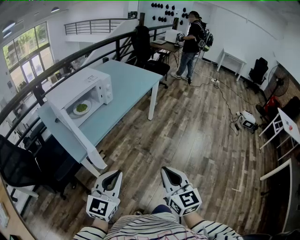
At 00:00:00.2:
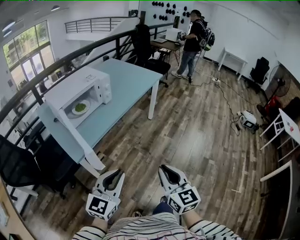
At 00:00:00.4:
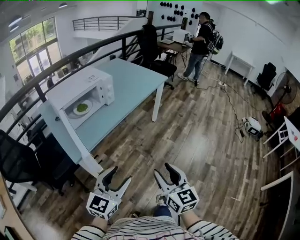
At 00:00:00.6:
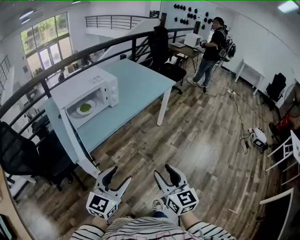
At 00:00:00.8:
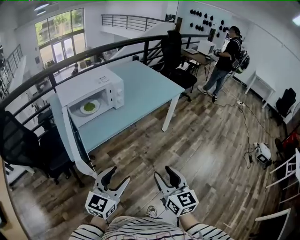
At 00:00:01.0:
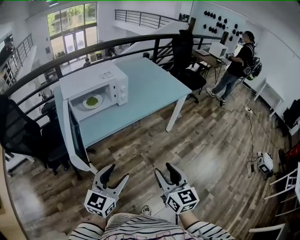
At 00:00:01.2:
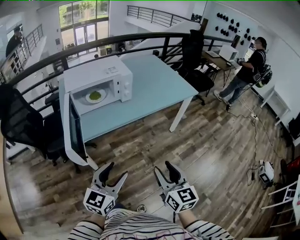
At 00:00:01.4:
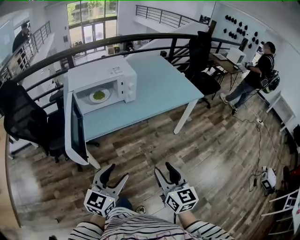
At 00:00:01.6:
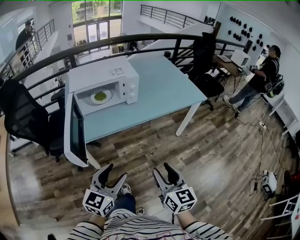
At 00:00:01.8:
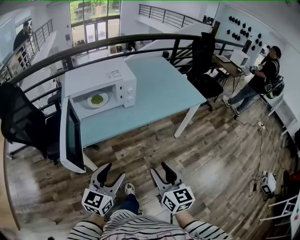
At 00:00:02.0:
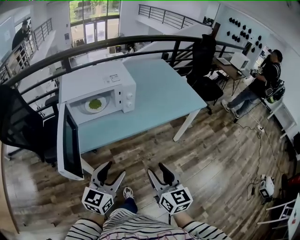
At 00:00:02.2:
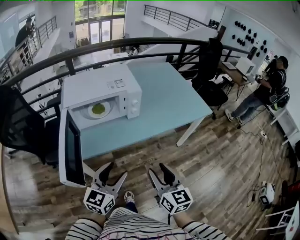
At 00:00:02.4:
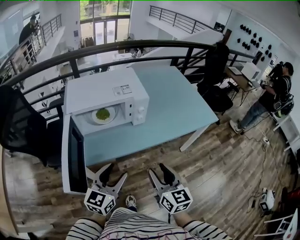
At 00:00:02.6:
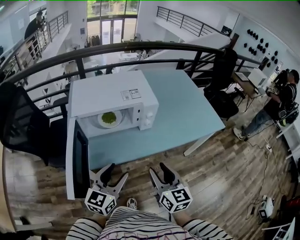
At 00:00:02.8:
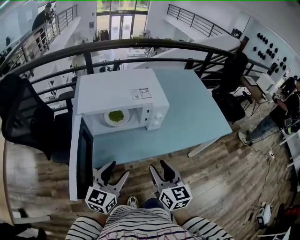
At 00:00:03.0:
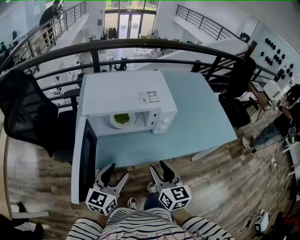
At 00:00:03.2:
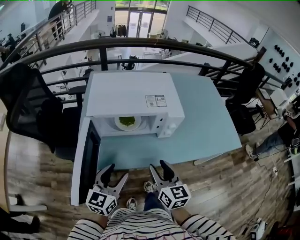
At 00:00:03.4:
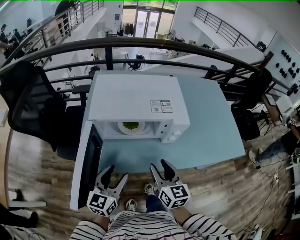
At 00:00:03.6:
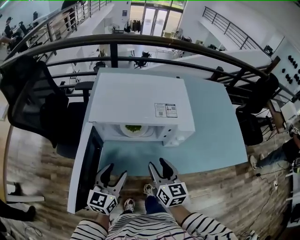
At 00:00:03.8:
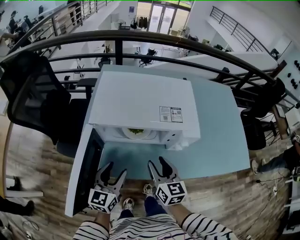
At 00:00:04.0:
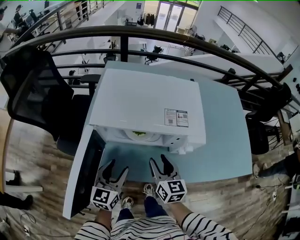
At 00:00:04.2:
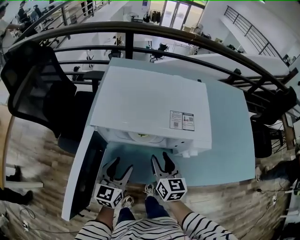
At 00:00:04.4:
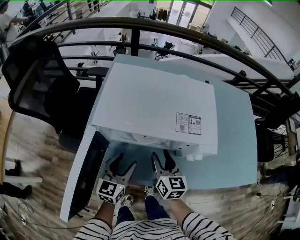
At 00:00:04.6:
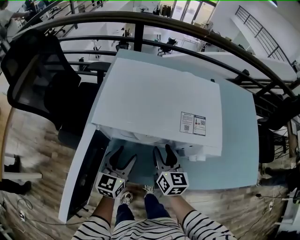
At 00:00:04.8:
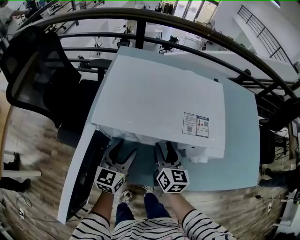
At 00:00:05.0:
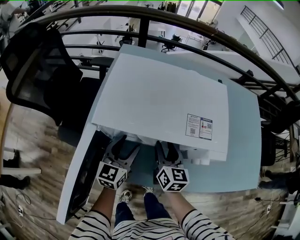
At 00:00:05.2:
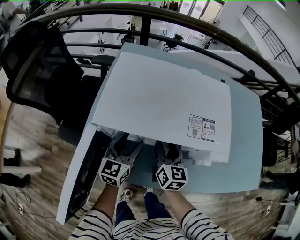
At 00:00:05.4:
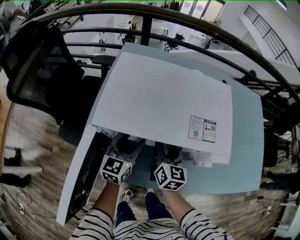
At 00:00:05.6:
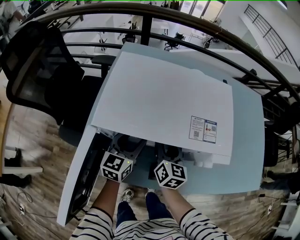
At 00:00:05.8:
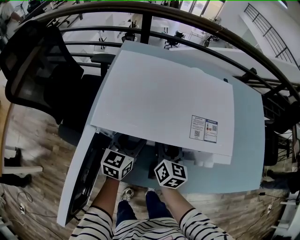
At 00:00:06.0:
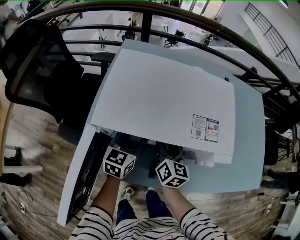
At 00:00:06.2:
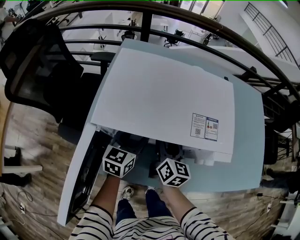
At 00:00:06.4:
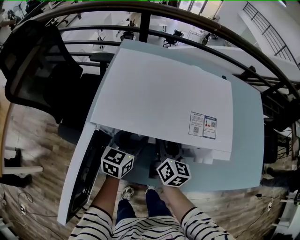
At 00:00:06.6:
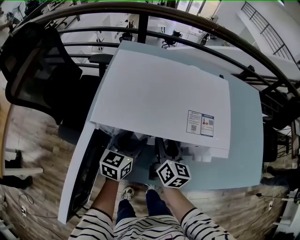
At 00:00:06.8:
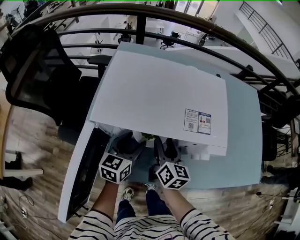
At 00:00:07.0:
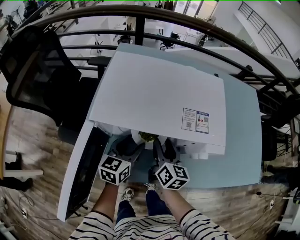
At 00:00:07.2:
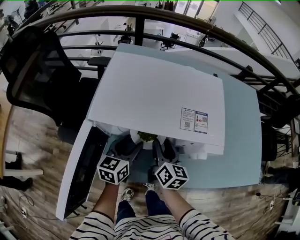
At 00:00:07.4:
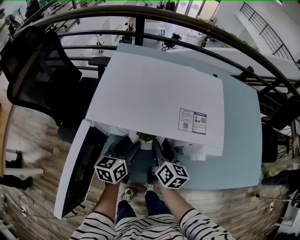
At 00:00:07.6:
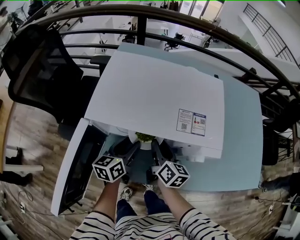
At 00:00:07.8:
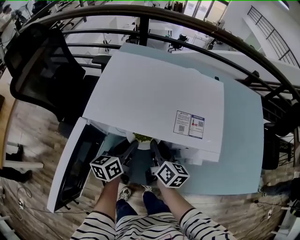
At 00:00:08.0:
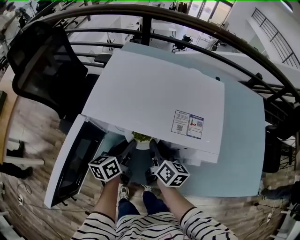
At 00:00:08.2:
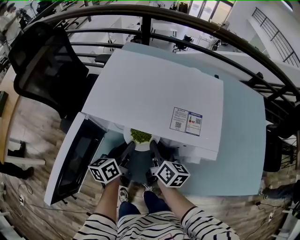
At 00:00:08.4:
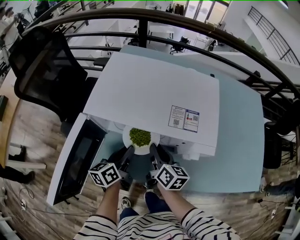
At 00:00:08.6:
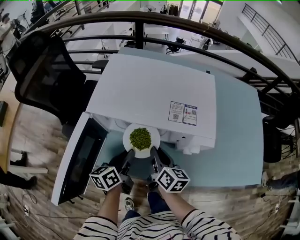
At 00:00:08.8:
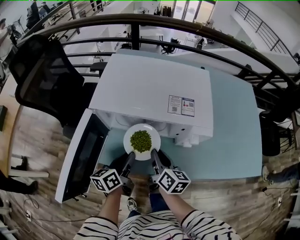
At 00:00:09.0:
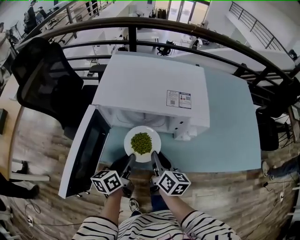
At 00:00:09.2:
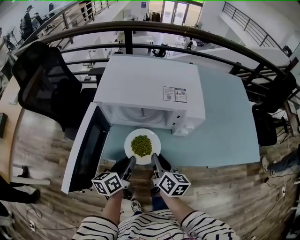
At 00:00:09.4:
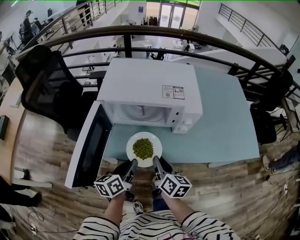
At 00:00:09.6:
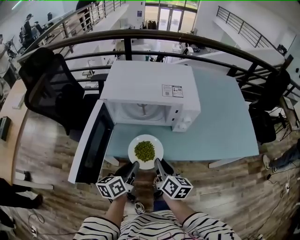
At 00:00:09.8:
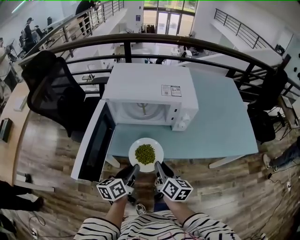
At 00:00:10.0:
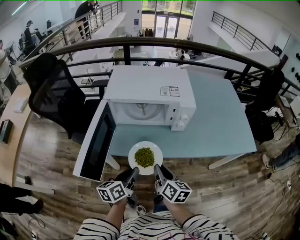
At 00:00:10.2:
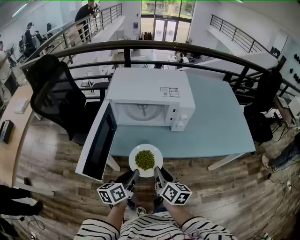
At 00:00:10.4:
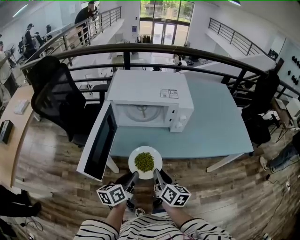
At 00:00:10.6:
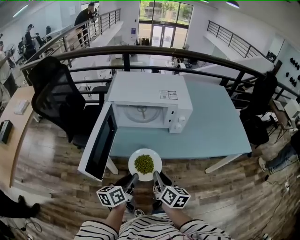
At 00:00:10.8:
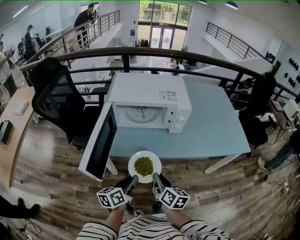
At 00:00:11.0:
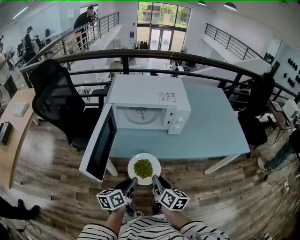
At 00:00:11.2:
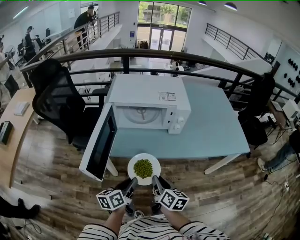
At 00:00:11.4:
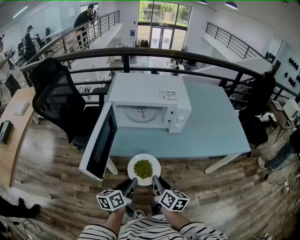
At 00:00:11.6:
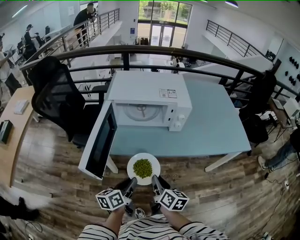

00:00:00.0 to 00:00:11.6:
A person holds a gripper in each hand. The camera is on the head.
00:00:00.0 to 00:00:01.4: The right gripper shifts by approximately 25 cm, changes its angle by some 30 degrees, and opens up. The left gripper ends up approximately 20 cm from where it was, rotates roughly 30 degrees, and opens.
00:00:01.4 to 00:00:02.8: The right gripper goes roughly 30 cm forward and to the left. Meanwhile the left gripper moves forward, about 25 cm.
00:00:02.8 to 00:00:04.4: The two grippers go about 25 cm forward and downward. The left gripper swivels some 20 degrees.
00:00:04.4 to 00:00:05.8: Both grippers move forward, approximately 10 cm.
00:00:05.8 to 00:00:07.2: The grippers move only a little.
00:00:07.2 to 00:00:08.8: The two grippers go some 10 cm backward. The left gripper turns by about 30 degrees, and closes its fingers. Meanwhile the right gripper closes.
00:00:08.8 to 00:00:10.2: The grippers both shift backward by some 20 cm.
00:00:10.2 to 00:00:11.6: The right gripper shifts about 5 cm backward. The left gripper changes place by roughly 5 cm.

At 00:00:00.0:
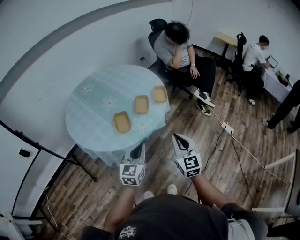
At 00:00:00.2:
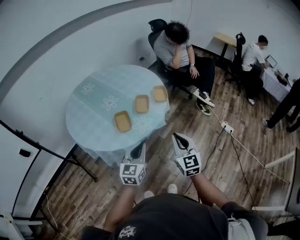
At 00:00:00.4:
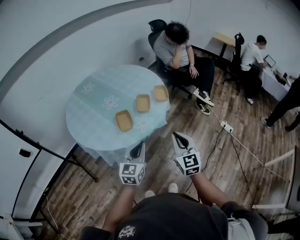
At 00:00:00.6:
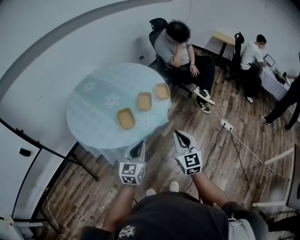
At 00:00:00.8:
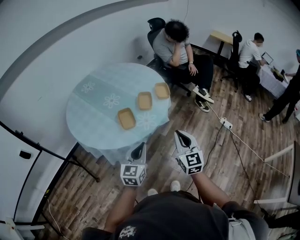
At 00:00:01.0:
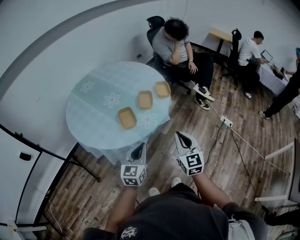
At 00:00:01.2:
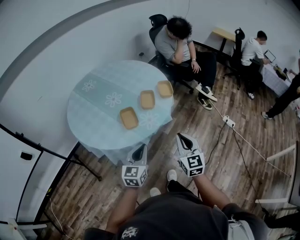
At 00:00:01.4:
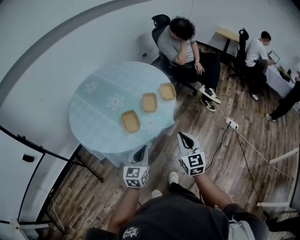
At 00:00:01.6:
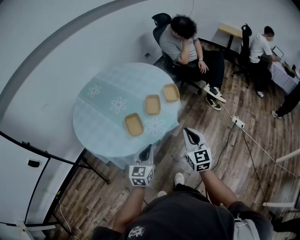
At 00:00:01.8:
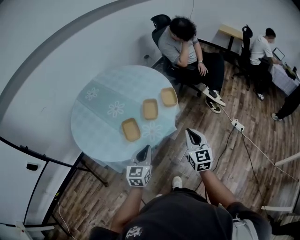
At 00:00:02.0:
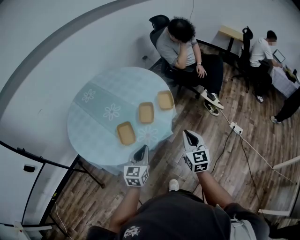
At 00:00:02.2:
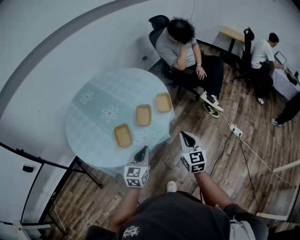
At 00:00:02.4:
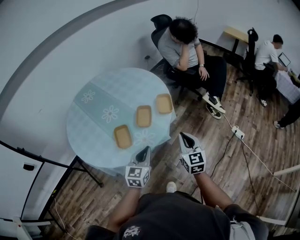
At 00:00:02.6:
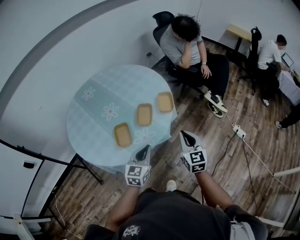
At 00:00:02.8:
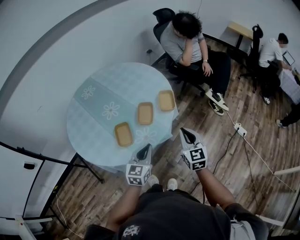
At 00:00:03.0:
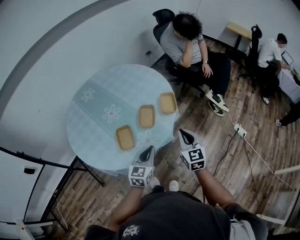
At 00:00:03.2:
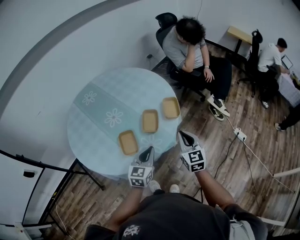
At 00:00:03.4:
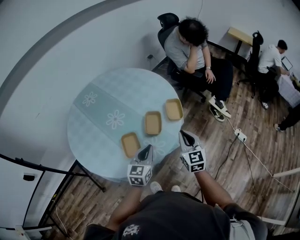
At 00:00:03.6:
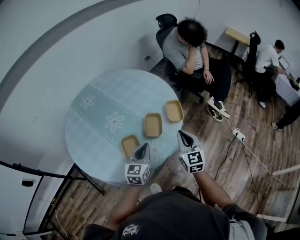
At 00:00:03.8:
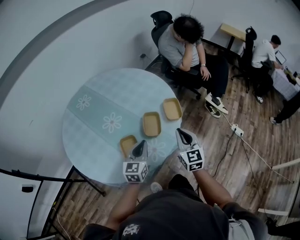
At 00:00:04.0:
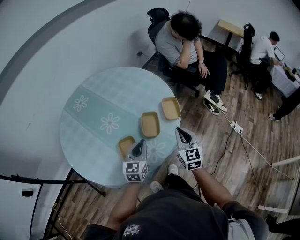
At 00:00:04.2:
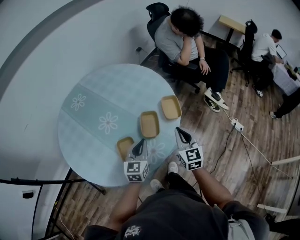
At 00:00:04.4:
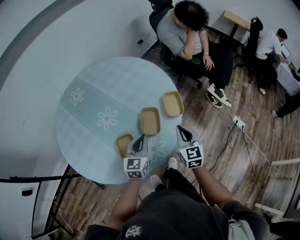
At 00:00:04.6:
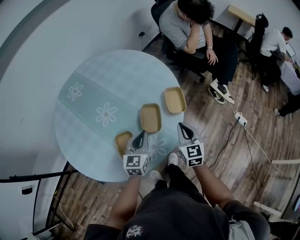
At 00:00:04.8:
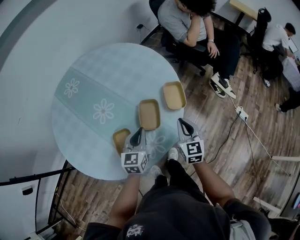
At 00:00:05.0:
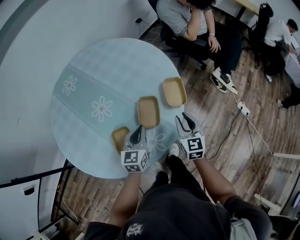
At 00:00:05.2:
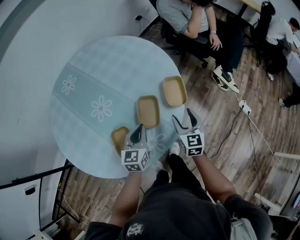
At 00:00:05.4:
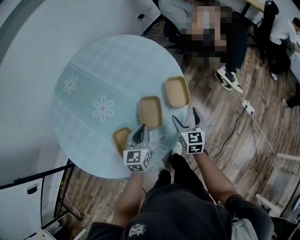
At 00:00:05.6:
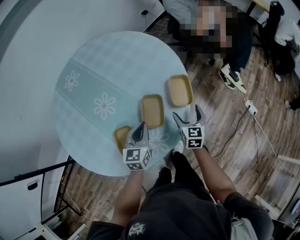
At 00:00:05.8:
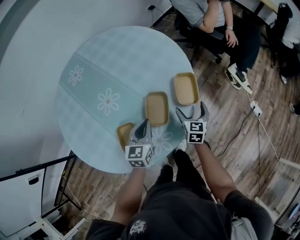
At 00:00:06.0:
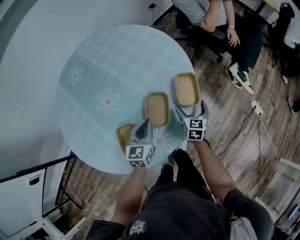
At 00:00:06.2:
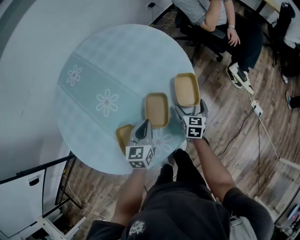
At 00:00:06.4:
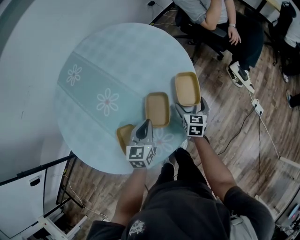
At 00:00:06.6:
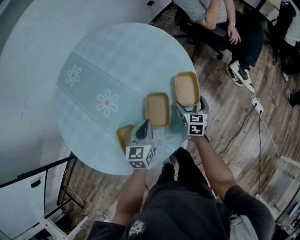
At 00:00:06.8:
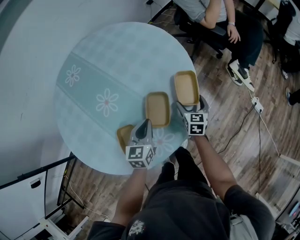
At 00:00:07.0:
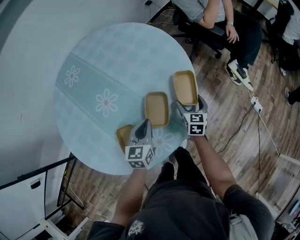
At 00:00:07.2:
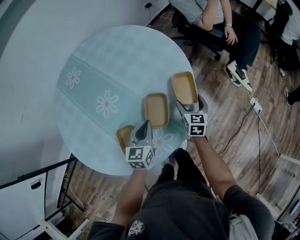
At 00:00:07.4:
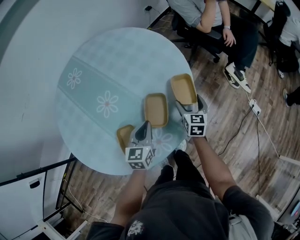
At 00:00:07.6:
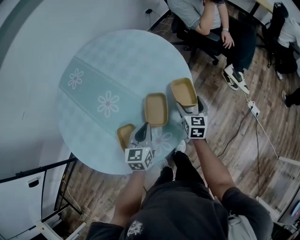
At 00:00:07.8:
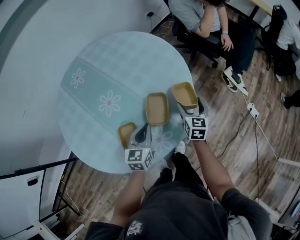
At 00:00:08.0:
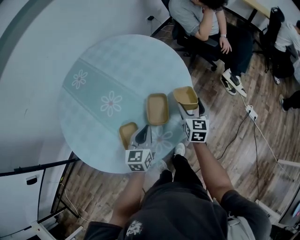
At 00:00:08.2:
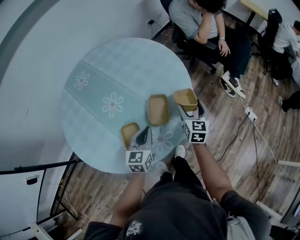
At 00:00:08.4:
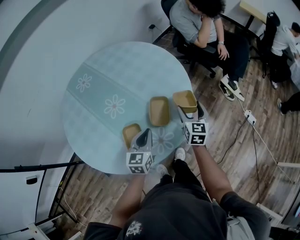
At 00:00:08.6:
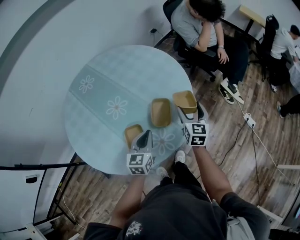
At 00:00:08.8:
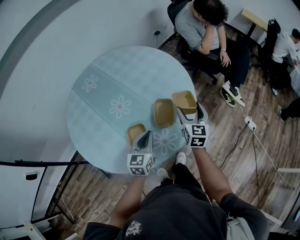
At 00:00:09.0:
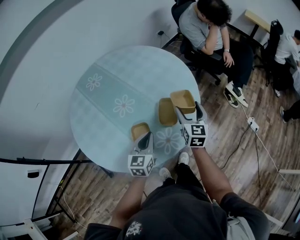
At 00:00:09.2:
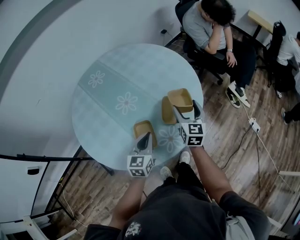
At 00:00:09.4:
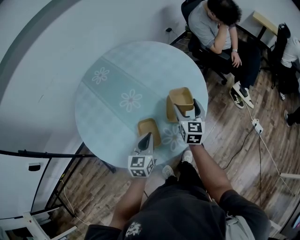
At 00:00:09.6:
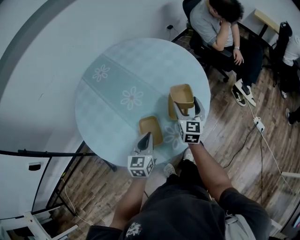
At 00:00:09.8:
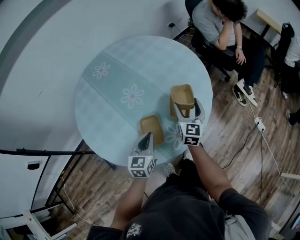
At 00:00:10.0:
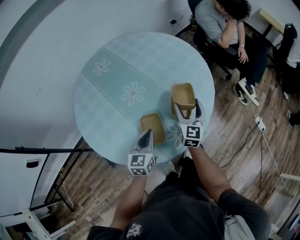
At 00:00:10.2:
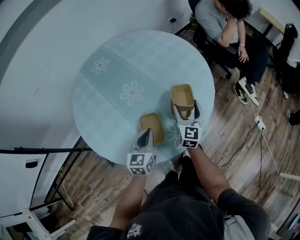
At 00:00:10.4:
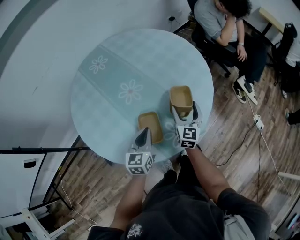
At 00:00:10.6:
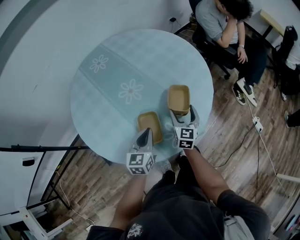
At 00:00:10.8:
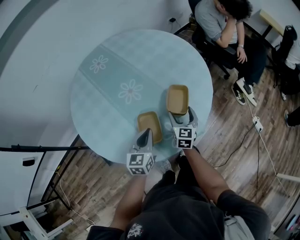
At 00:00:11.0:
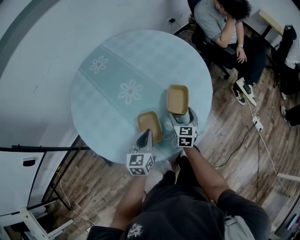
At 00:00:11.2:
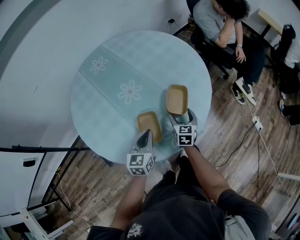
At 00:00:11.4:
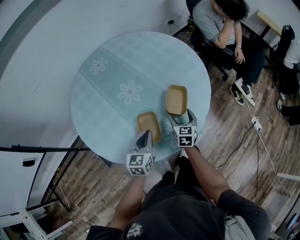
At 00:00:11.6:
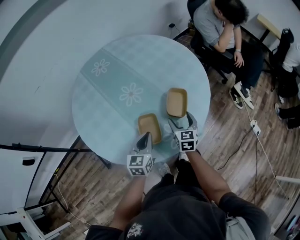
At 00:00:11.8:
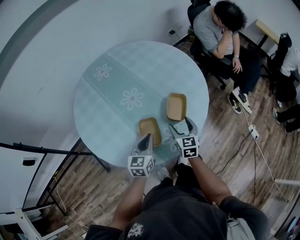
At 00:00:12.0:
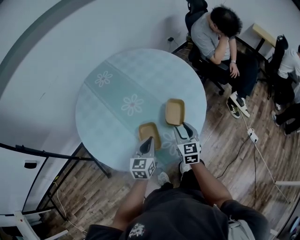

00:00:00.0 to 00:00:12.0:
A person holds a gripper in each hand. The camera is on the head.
00:00:00.0 to 00:00:01.6: The left gripper ends up approximately 5 cm from where it was. Meanwhile the right gripper heads forward, covering about 5 cm.
00:00:01.6 to 00:00:03.0: The right gripper shifts about 15 cm forward. Meanwhile the left gripper shifts some 15 cm forward and to the right.
00:00:03.0 to 00:00:04.4: The right gripper goes some 15 cm forward, to the left and downward; the left gripper travels forward and to the left by approximately 20 cm.
00:00:04.4 to 00:00:06.0: The left gripper travels forward and downward by some 10 cm. Meanwhile the right gripper goes about 25 cm downward and forward, and opens.
00:00:06.0 to 00:00:07.6: The right gripper moves upward, some 5 cm.
00:00:07.6 to 00:00:09.0: The right gripper is displaced upward, backward and to the left by roughly 15 cm. Meanwhile the left gripper moves backward and upward, about 10 cm.
00:00:09.0 to 00:00:10.4: The left gripper shifts some 5 cm to the left; the right gripper shifts roughly 10 cm downward and to the left.
00:00:10.4 to 00:00:12.0: The right gripper is displaced backward by about 5 cm, moves about 10 cm downward and comes back, and closes up.
